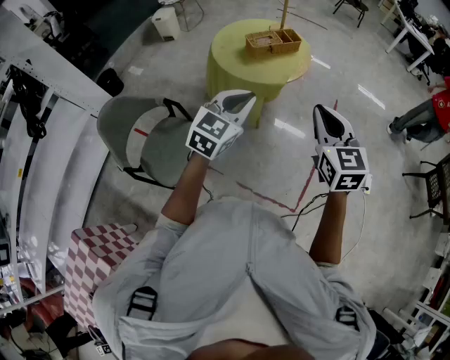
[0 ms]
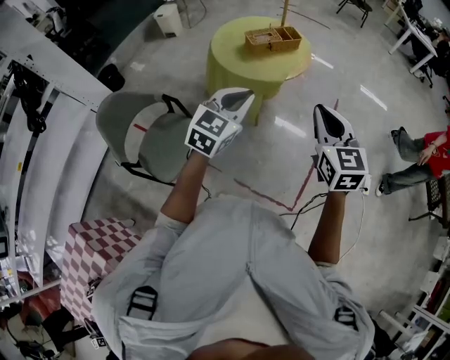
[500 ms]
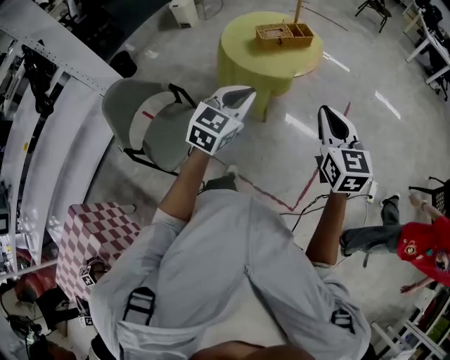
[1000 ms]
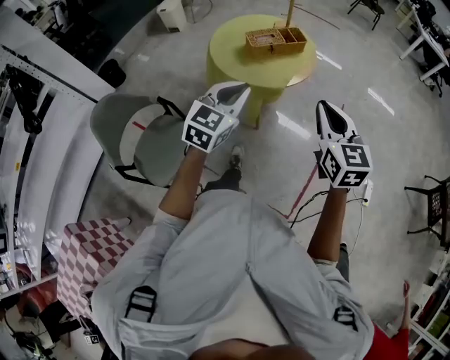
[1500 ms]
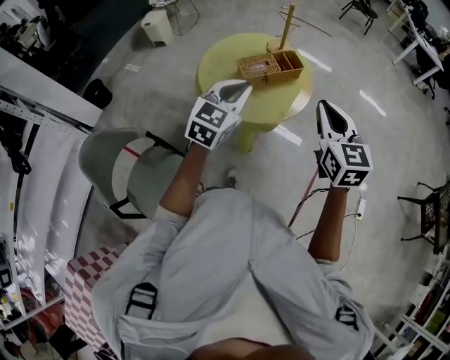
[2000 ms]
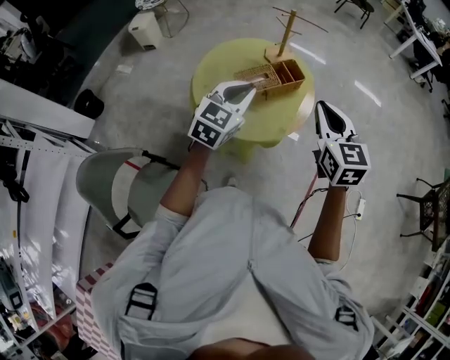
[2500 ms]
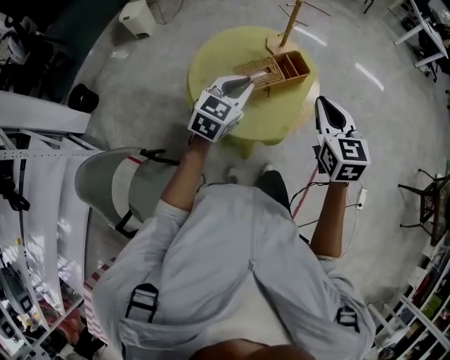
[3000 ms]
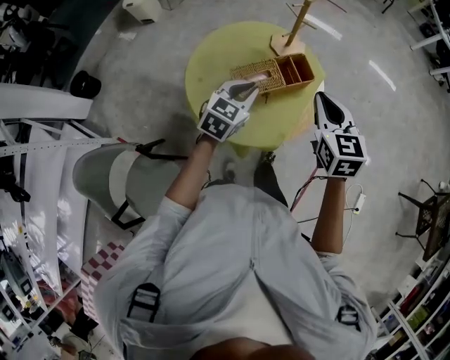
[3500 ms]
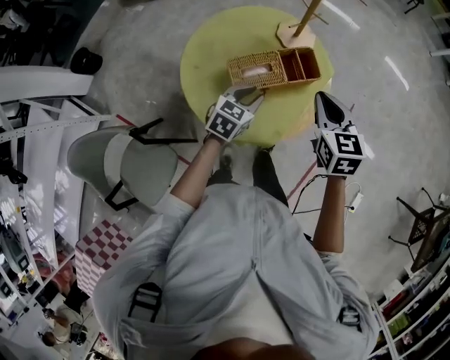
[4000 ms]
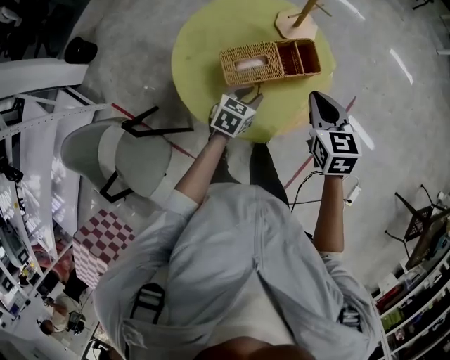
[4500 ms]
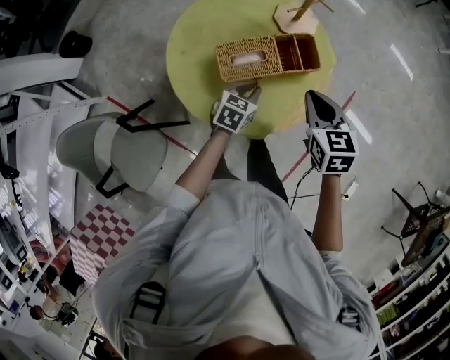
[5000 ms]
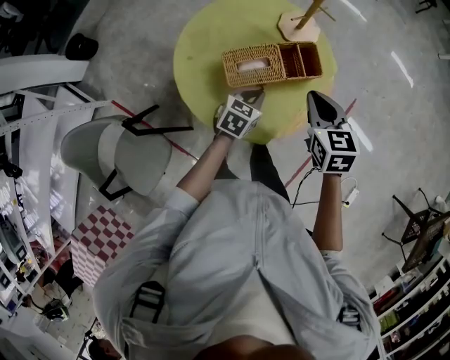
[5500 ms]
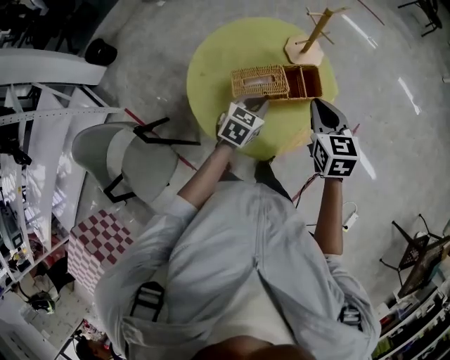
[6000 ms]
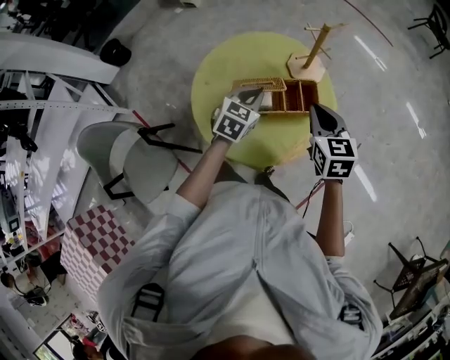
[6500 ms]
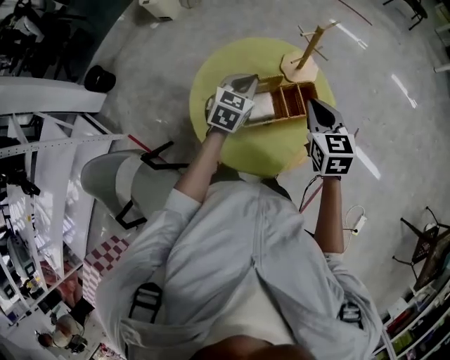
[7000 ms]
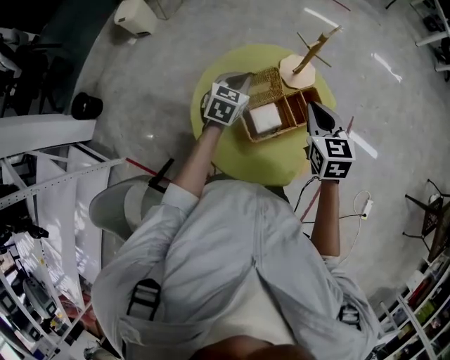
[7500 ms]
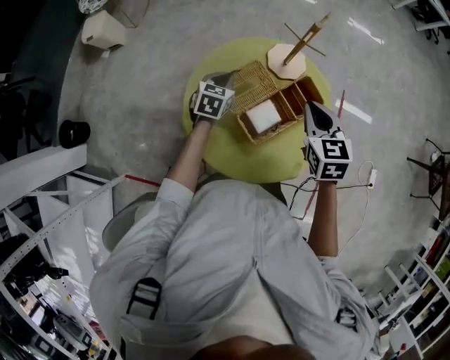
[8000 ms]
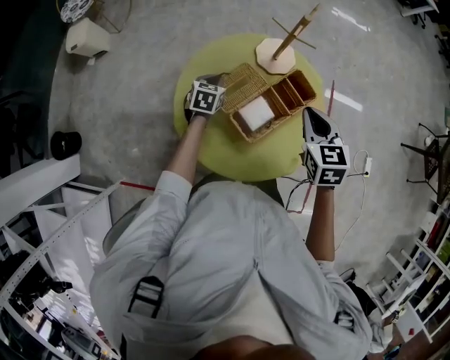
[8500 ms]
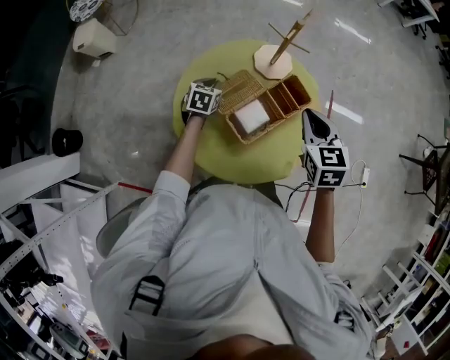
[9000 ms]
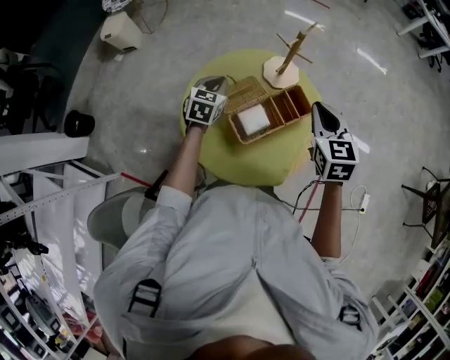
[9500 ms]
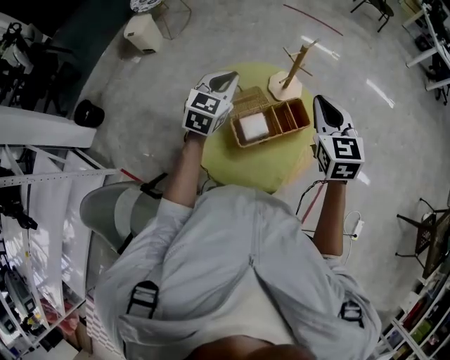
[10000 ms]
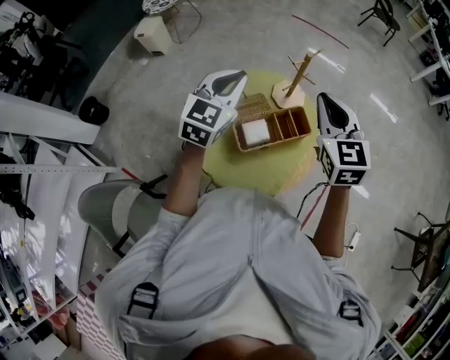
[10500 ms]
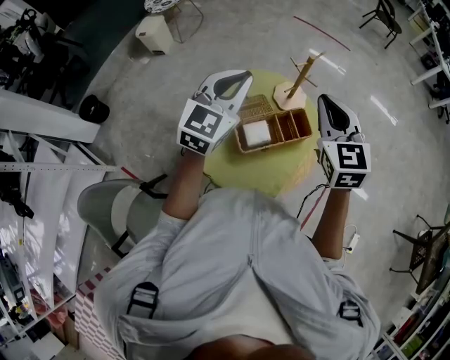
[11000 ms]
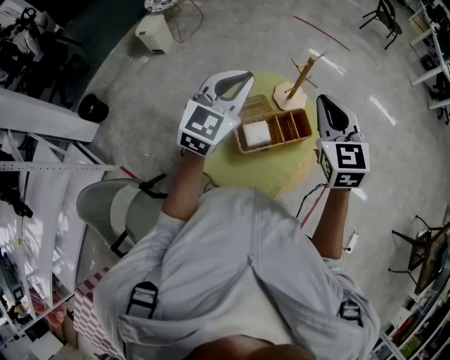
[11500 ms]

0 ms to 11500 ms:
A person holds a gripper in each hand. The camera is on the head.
0 ms to 2000 ms: The two grippers go roughly 30 cm forward.
2000 ms to 4000 ms: The right gripper moves forward and downward, some 35 cm, and swivels about 20 degrees; the left gripper moves downward and forward, about 35 cm, and rotates roughly 30 degrees.
4000 ms to 6000 ms: The left gripper reaches roughly 10 cm downward, then returns.
6000 ms to 7500 ms: The left gripper heads forward and to the left, covering roughly 20 cm; the right gripper heads to the left and forward, covering approximately 10 cm.
7500 ms to 9500 ms: The left gripper goes downward and returns, approximately 15 cm each way. Meanwhile the right gripper is displaced to the right by roughly 5 cm.
9500 ms to 11500 ms: The left gripper travels upward by some 25 cm, and changes its angle by some 30 degrees; the right gripper shifts some 15 cm upward, and turns by about 20 degrees.

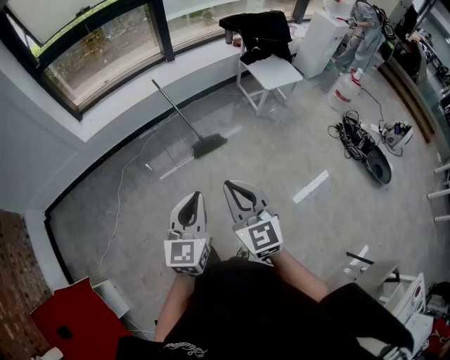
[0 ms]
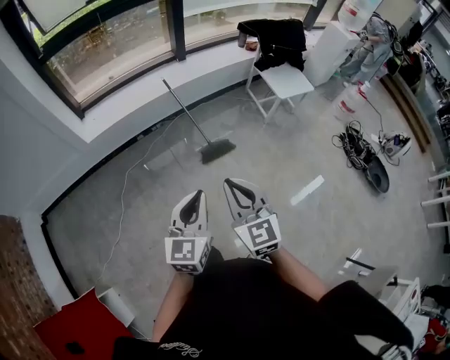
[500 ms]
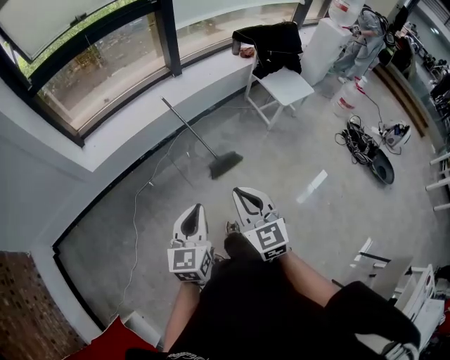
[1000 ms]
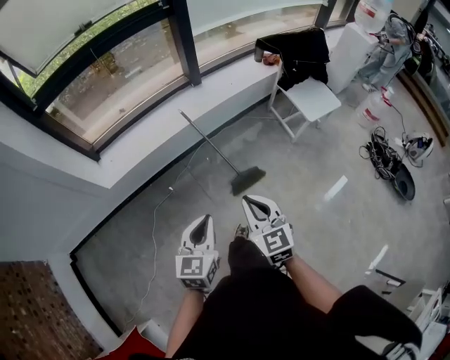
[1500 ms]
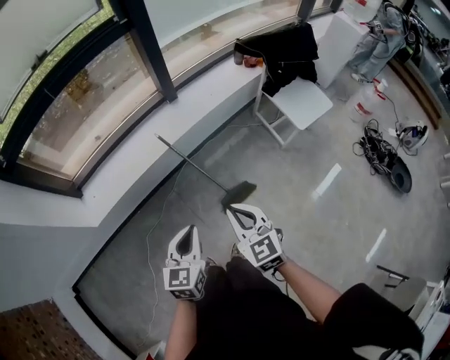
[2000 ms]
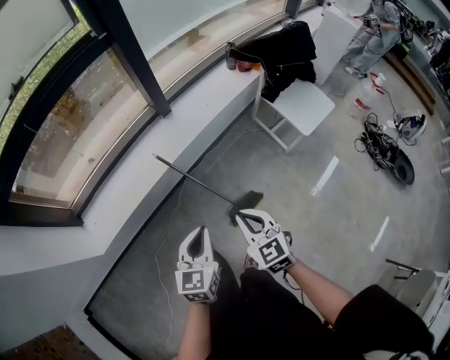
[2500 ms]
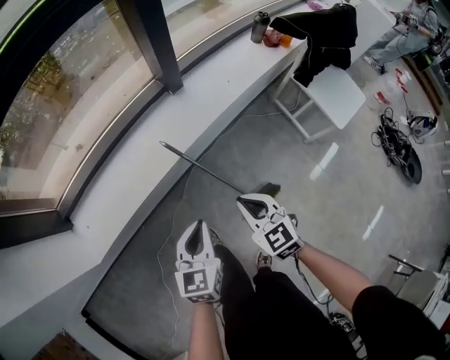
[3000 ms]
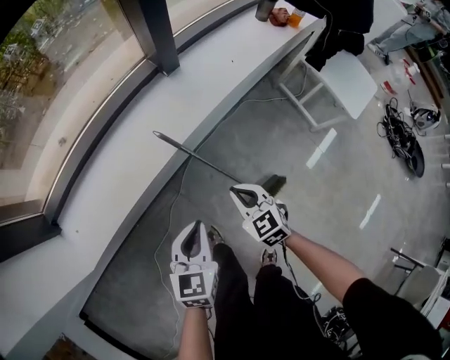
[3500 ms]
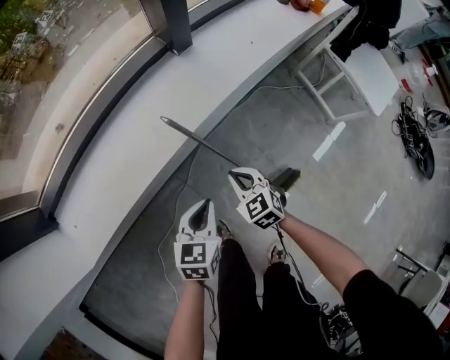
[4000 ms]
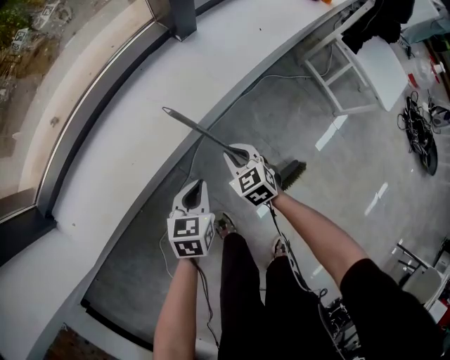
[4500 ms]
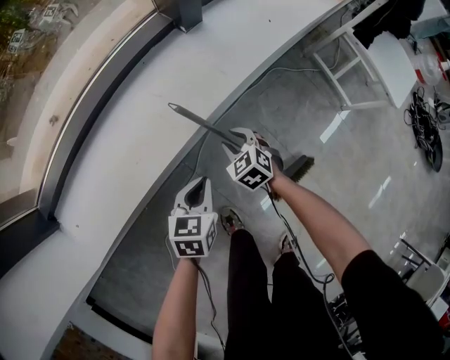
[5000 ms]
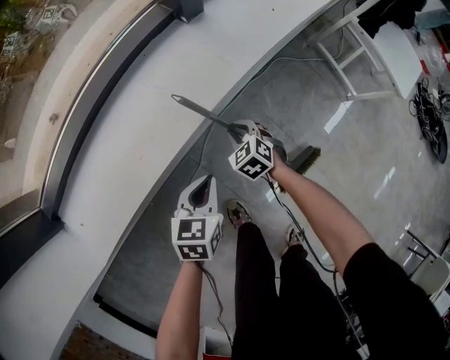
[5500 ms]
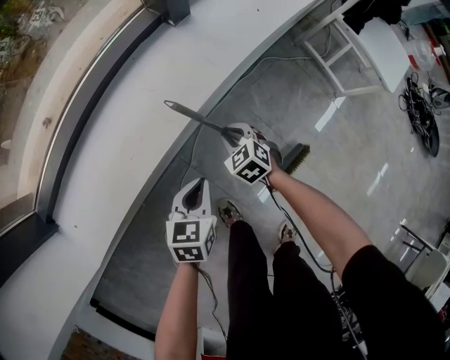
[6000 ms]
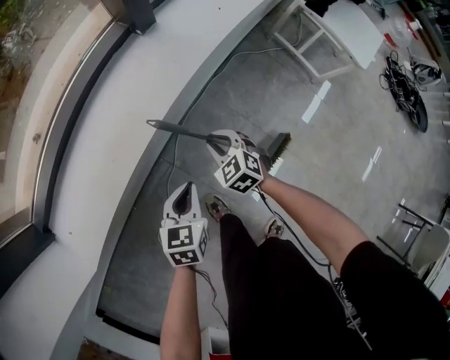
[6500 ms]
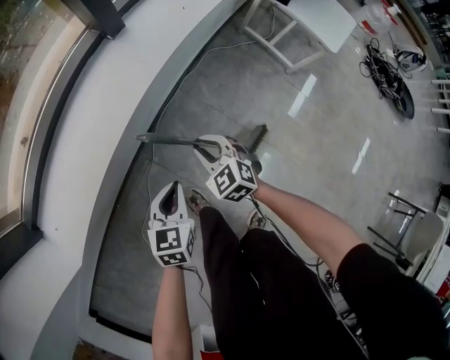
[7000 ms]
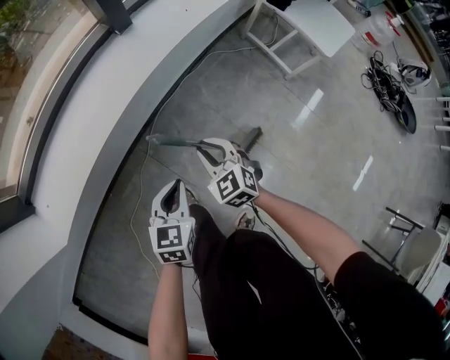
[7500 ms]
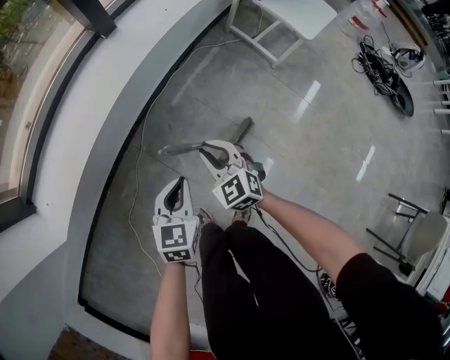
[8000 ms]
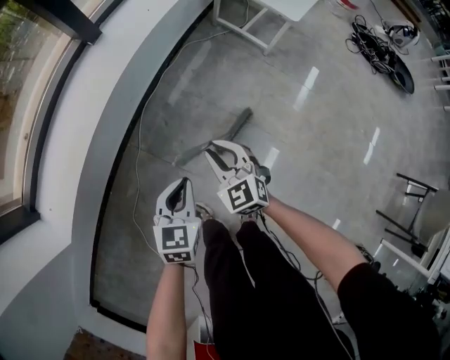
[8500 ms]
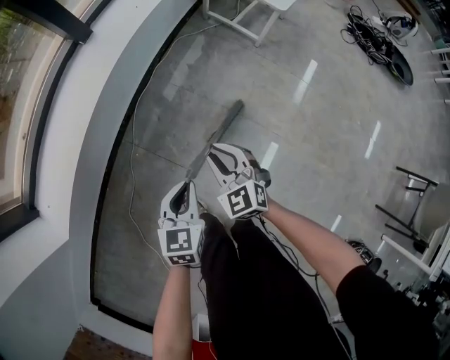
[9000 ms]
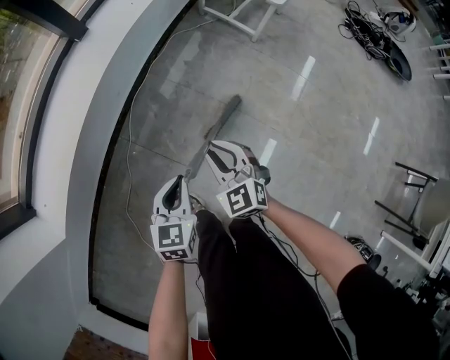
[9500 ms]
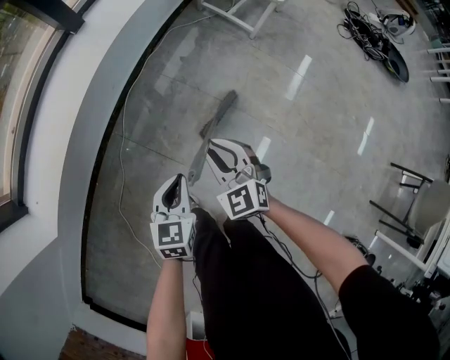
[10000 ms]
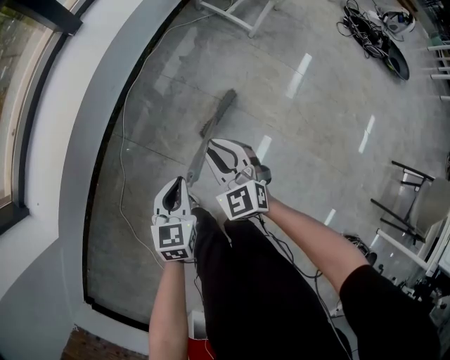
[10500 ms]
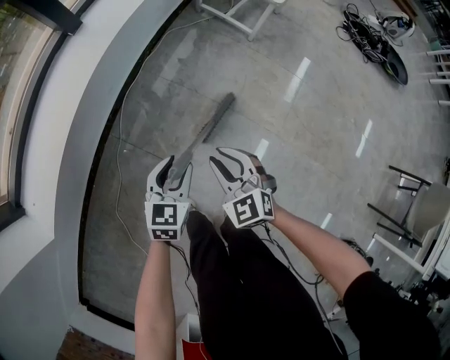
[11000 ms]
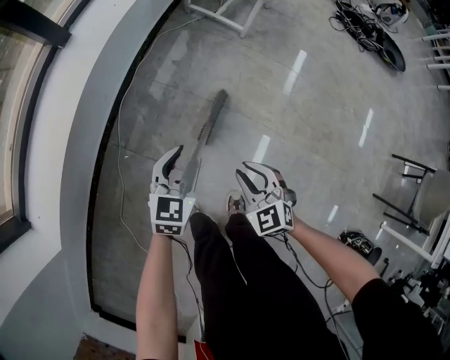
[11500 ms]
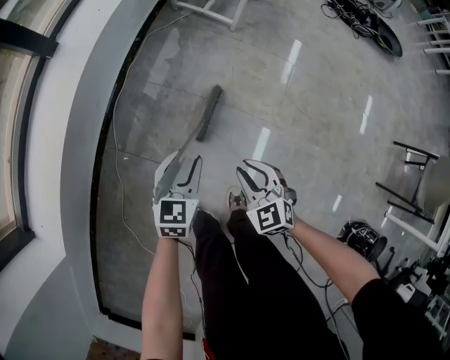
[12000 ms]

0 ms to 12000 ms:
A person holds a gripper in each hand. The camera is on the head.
0 ms to 2000 ms: The two grippers travel together, forward, roughly 50 cm.
2000 ms to 4000 ms: The grippers both shift downward and forward by some 50 cm.
4000 ms to 6000 ms: The right gripper travels downward and forward by about 10 cm. The left gripper shifts approximately 5 cm downward.
6000 ms to 8000 ms: The left gripper moves backward, to the right and upward, about 30 cm. The right gripper goes roughly 35 cm backward, upward and to the right, and swivels about 20 degrees.
8000 ms to 10000 ms: Both grippers move backward and to the right, approximately 10 cm.
10000 ms to 12000 ms: The left gripper shifts approximately 10 cm to the right and forward, and opens. The right gripper moves to the right, backward and downward, approximately 15 cm.

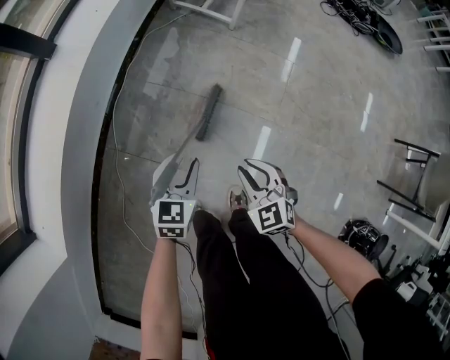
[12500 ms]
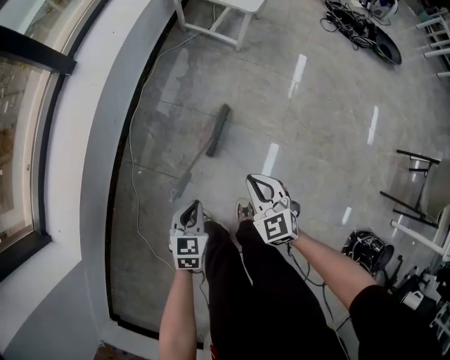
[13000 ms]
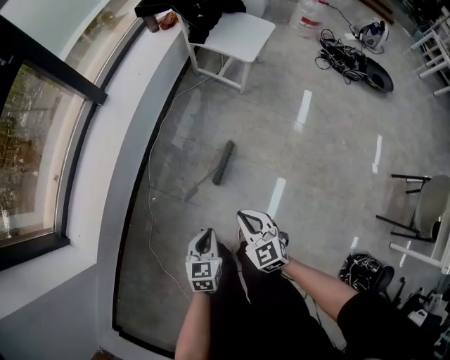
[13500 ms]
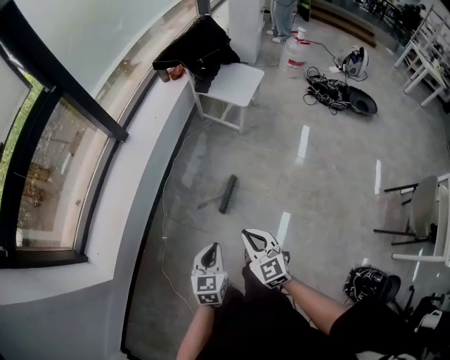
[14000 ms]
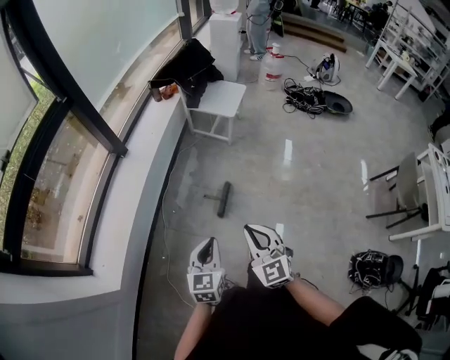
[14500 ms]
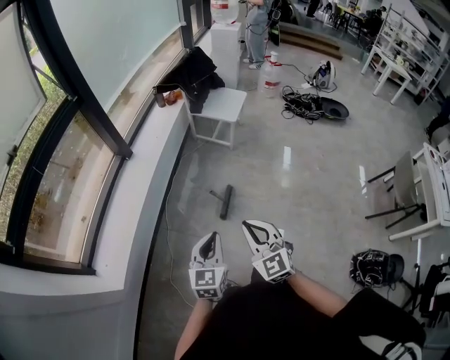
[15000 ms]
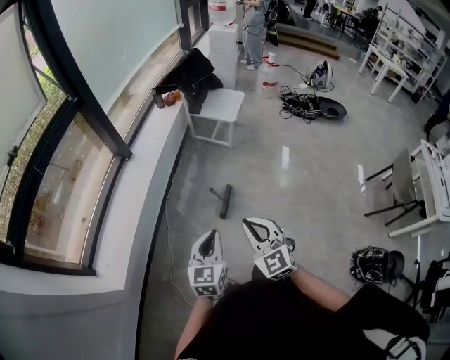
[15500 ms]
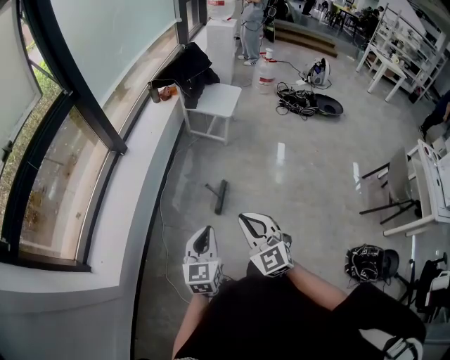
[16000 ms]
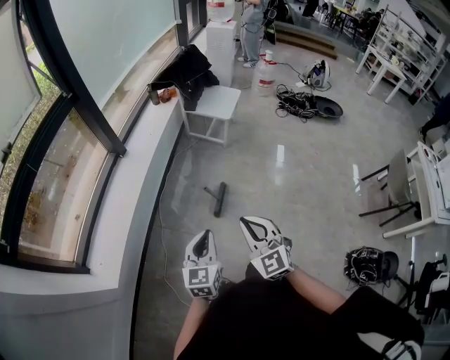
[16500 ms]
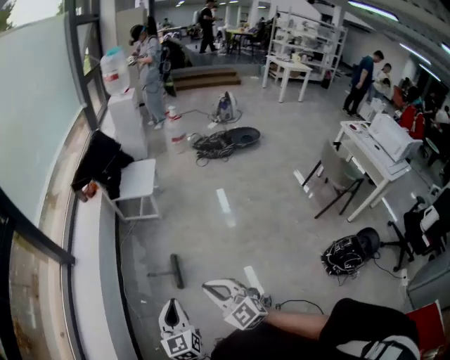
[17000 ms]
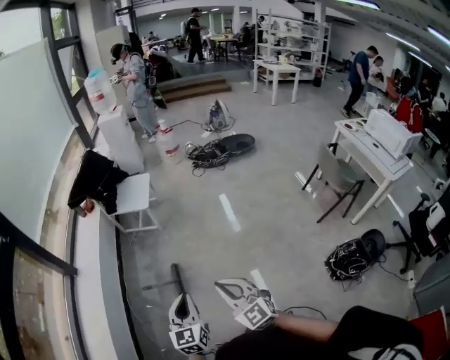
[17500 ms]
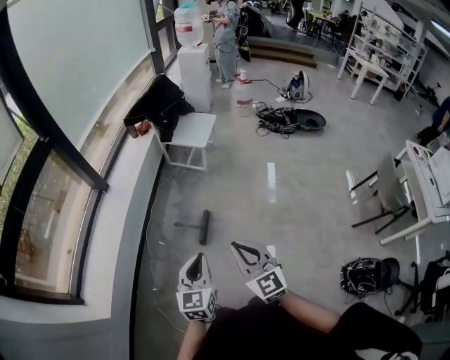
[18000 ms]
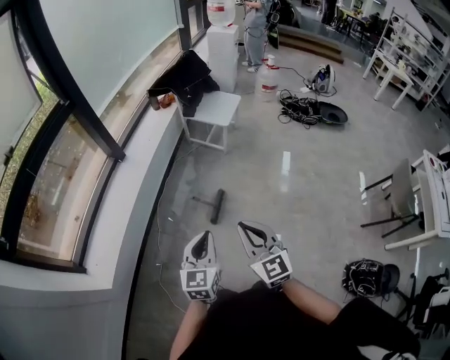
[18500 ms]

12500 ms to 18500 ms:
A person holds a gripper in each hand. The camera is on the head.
12500 ms to 14500 ms: The right gripper shifts some 40 cm upward, and swivels approximately 20 degrees. The left gripper heads upward and backward, covering about 40 cm, and closes up.
14500 ms to 16500 ms: The right gripper moves about 5 cm. The left gripper shifts by roughly 5 cm.
16500 ms to 18500 ms: Both grippers move to the right, some 5 cm.
